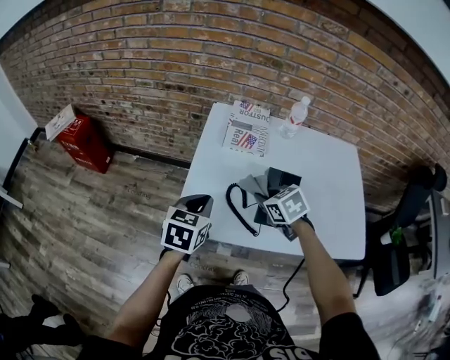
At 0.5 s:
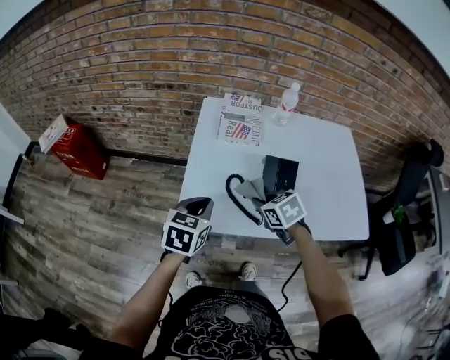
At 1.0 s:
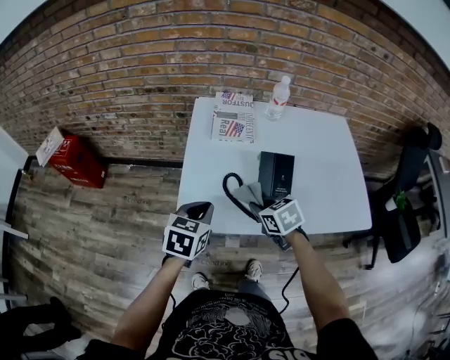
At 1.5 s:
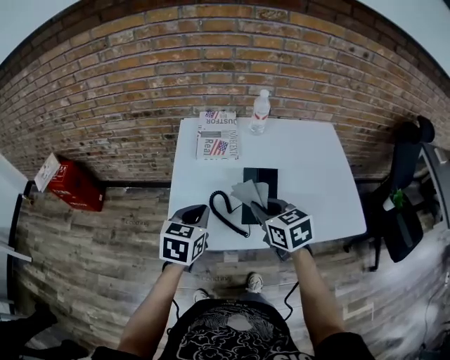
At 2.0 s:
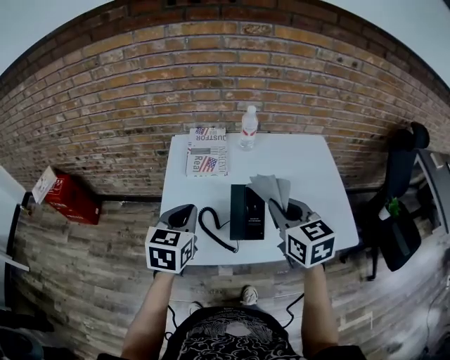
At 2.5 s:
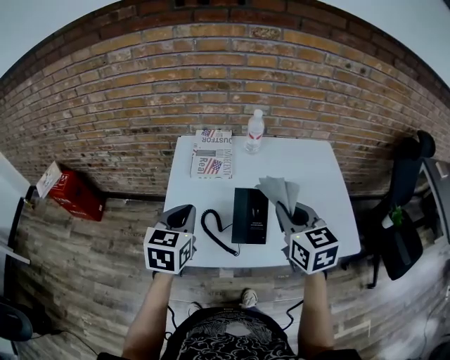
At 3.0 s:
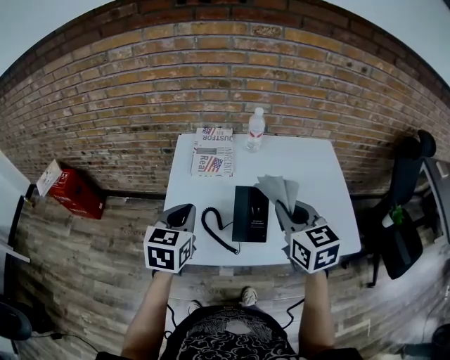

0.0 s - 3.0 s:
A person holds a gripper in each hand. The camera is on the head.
0.0 s - 1.5 s: The left gripper shifts by some 5 cm, while the right gripper shifts some 10 cm upward and backward, and changes its angle by about 30 degrees.
1.5 s - 3.0 s: The left gripper is displaced upward by some 5 cm. The right gripper goes some 15 cm upward and to the right.

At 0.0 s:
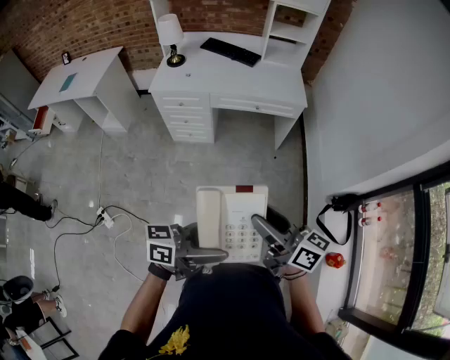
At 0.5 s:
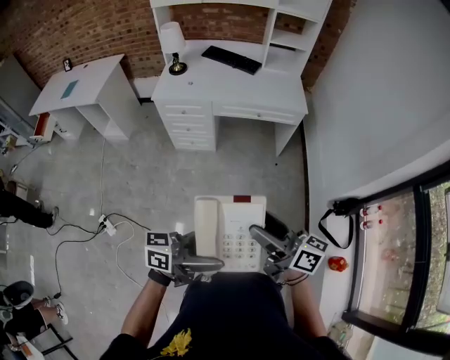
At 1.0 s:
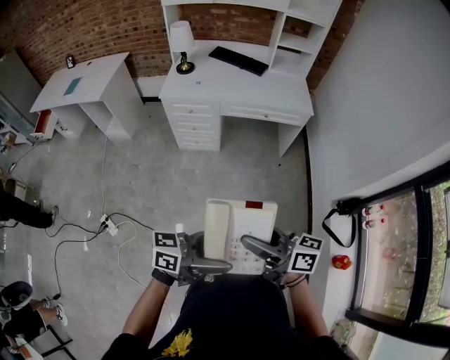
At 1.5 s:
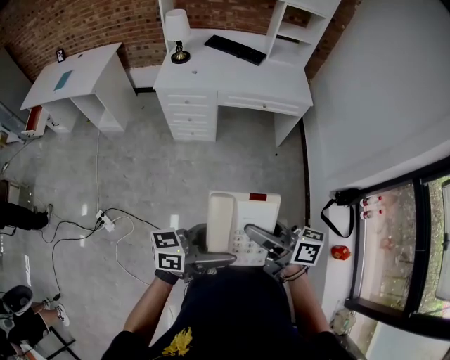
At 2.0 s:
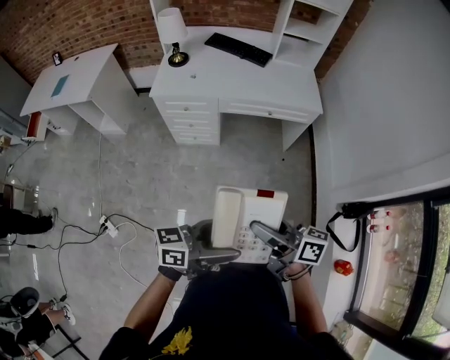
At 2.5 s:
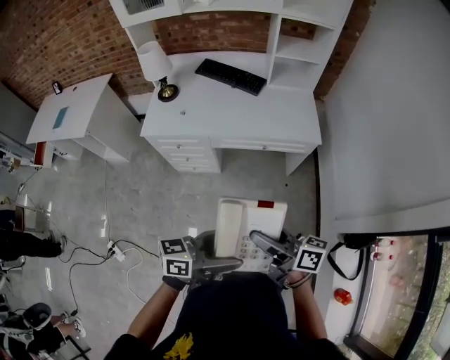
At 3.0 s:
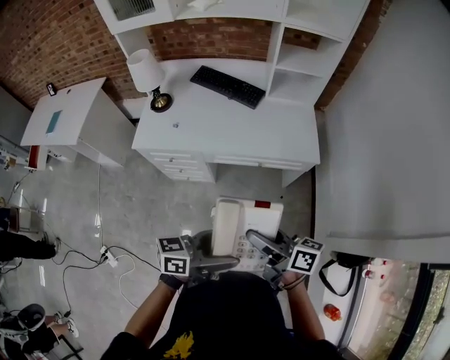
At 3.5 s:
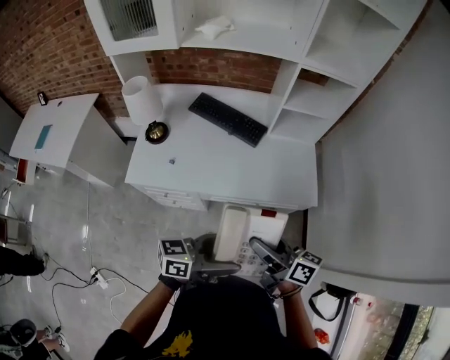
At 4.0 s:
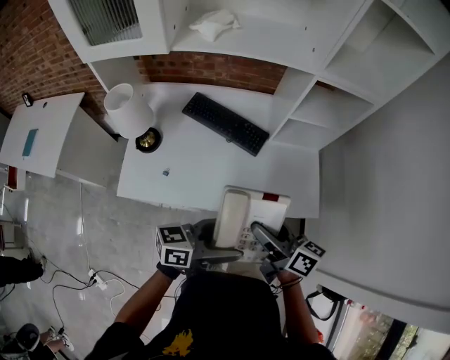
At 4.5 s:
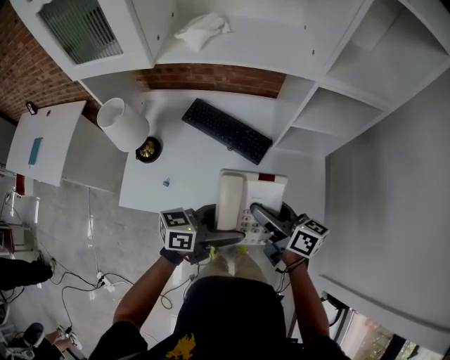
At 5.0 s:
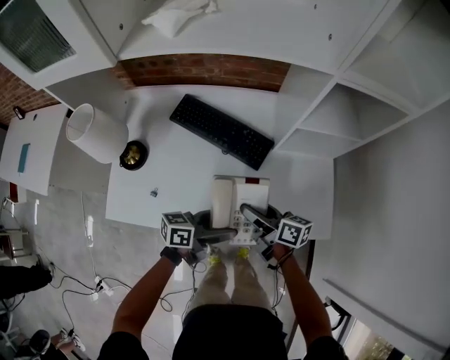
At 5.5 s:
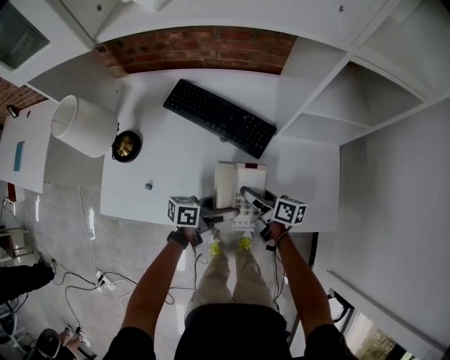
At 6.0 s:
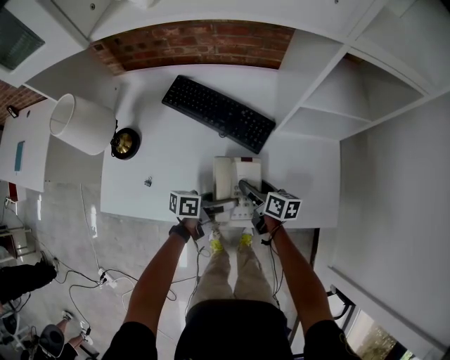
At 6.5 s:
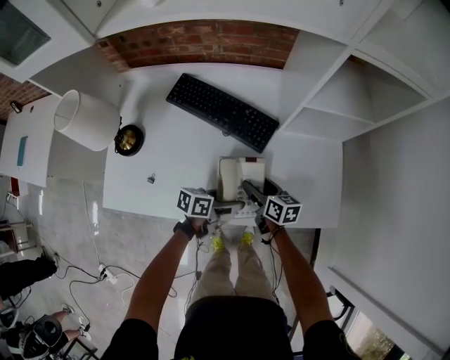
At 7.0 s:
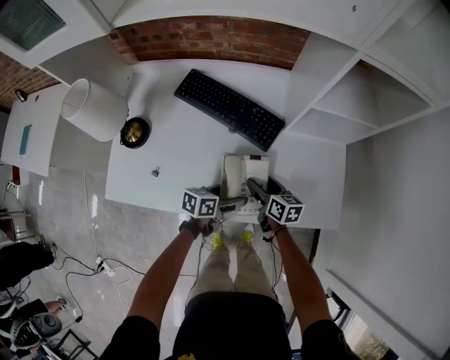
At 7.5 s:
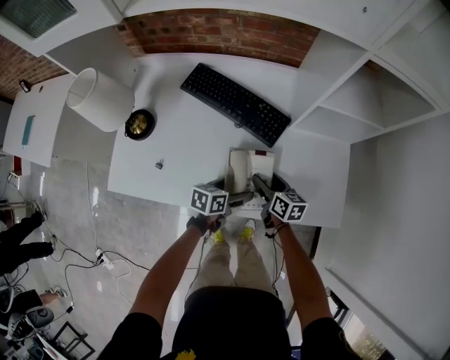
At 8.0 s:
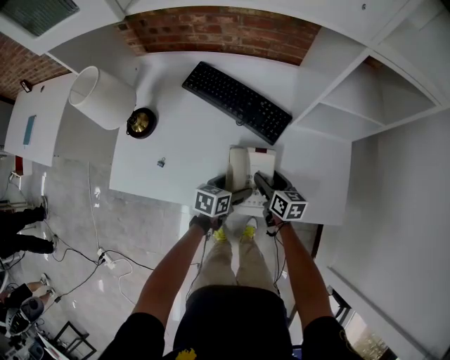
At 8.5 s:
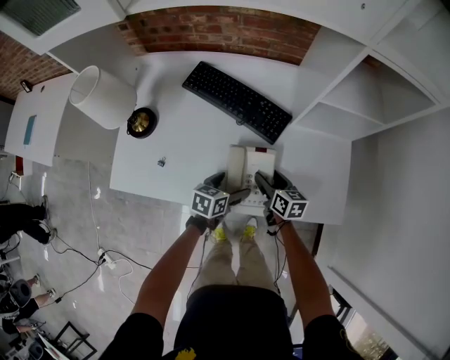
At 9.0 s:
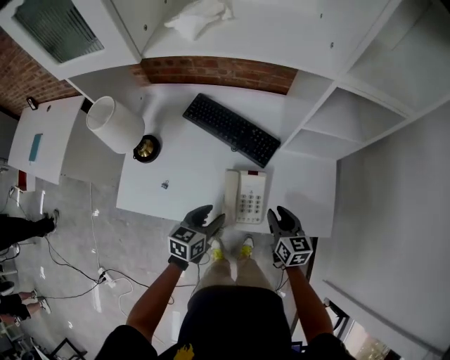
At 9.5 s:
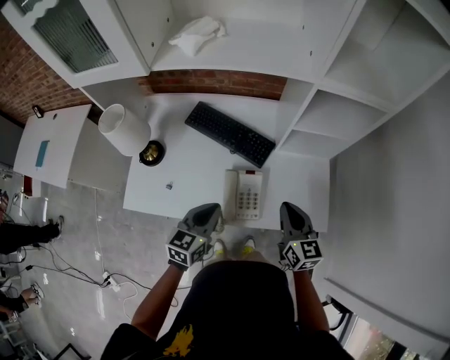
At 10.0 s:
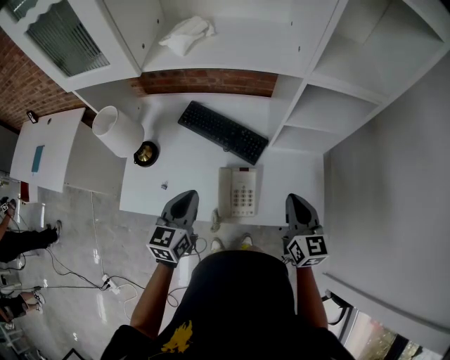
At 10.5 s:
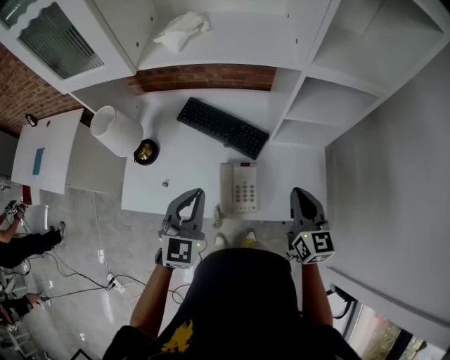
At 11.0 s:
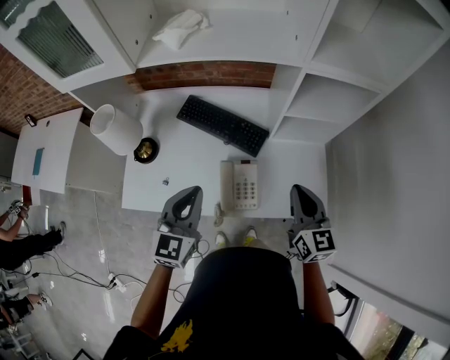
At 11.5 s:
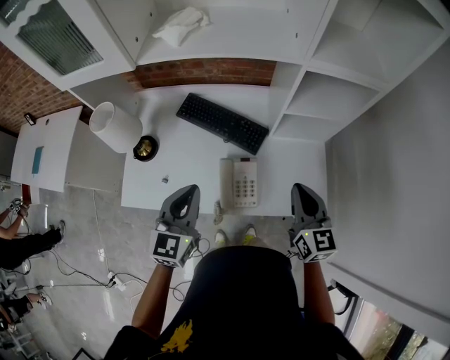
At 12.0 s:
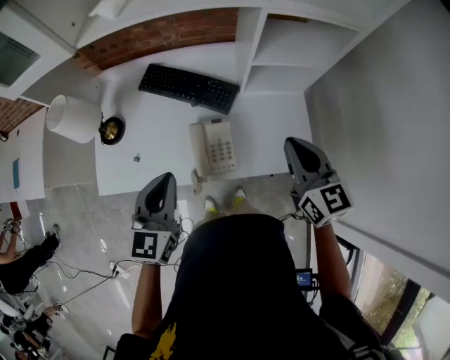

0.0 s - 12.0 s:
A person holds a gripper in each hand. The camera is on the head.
0.0 s - 2.0 s: The left gripper shifts by some 15 cm, while the right gripper ends up roughly 15 cm from where it was.
2.0 s - 4.0 s: Both grippers are carried forward, some 60 cm.
4.0 s - 6.0 s: The grippers both shift downward and forward by roughly 40 cm. The left gripper changes its angle by roughly 30 degrees. Meanwhile the right gripper swivels approximately 20 degrees.
6.0 s - 8.0 s: The left gripper changes its angle by roughly 40 degrees.
8.0 s - 10.0 s: The two grippers go about 30 cm upward. The right gripper turns by roughly 30 degrees, and closes; the left gripper turns by roughly 40 degrees, and closes up.
10.0 s - 12.0 s: The left gripper shifts by about 5 cm. Meanwhile the right gripper shifts roughly 5 cm upward.

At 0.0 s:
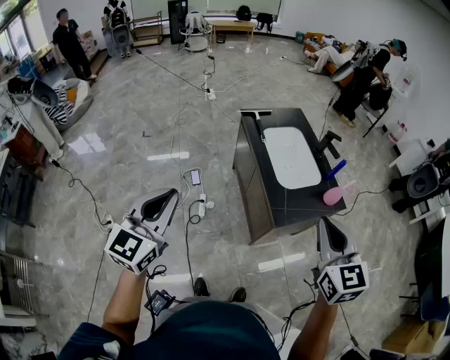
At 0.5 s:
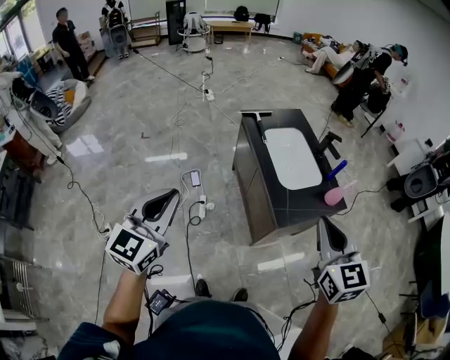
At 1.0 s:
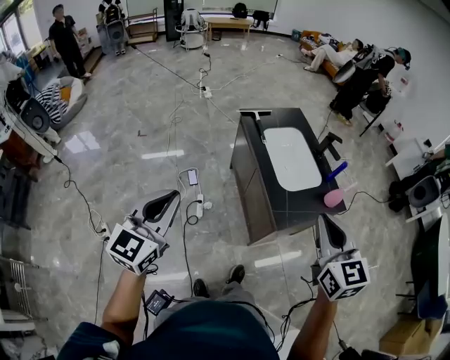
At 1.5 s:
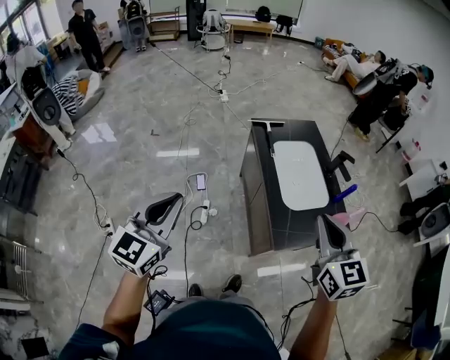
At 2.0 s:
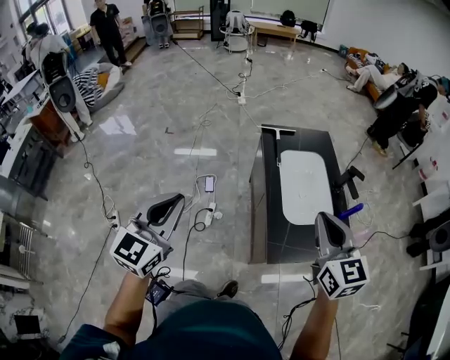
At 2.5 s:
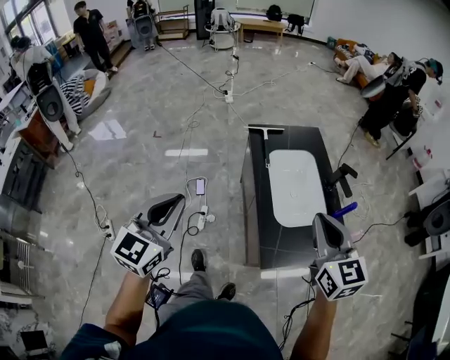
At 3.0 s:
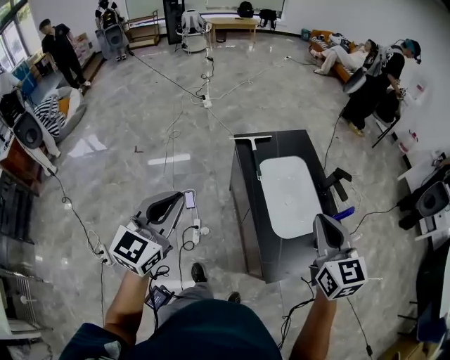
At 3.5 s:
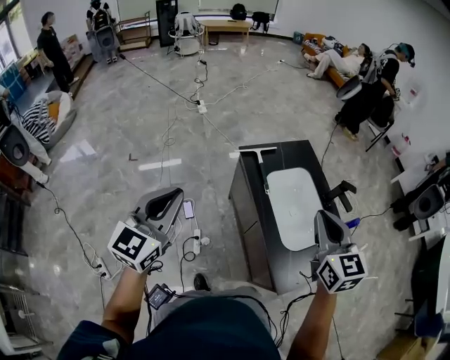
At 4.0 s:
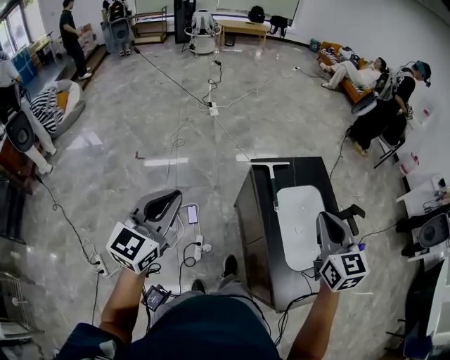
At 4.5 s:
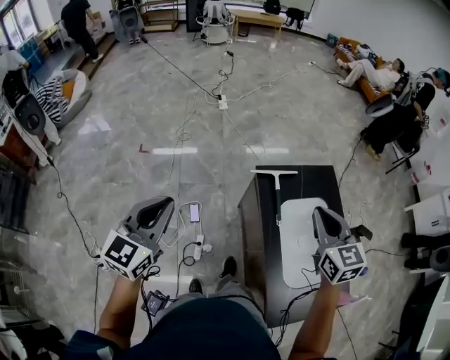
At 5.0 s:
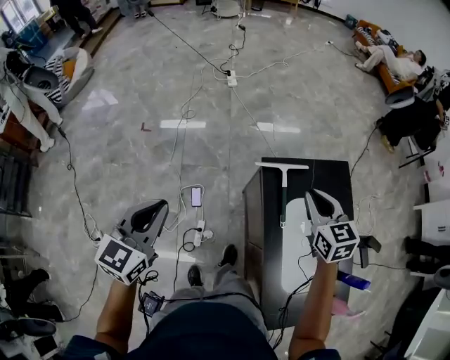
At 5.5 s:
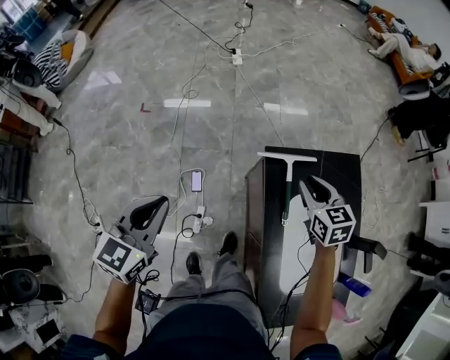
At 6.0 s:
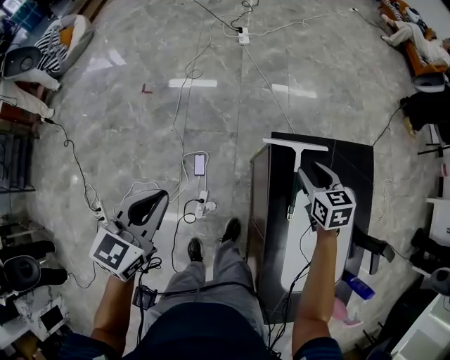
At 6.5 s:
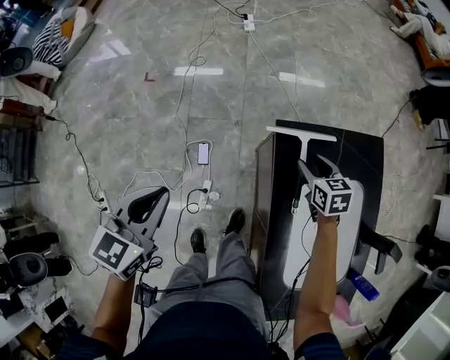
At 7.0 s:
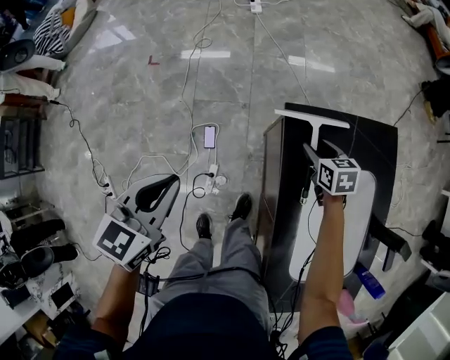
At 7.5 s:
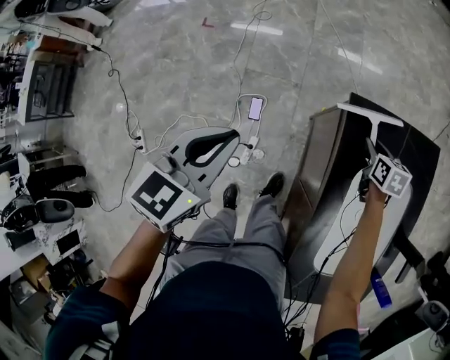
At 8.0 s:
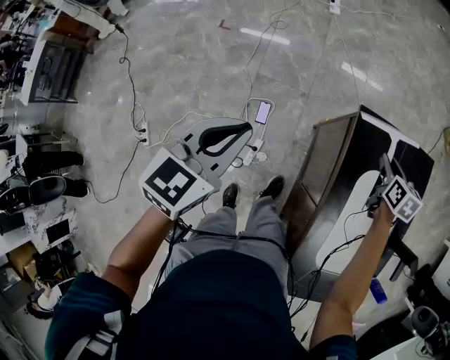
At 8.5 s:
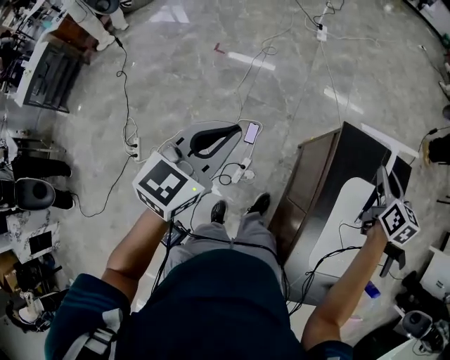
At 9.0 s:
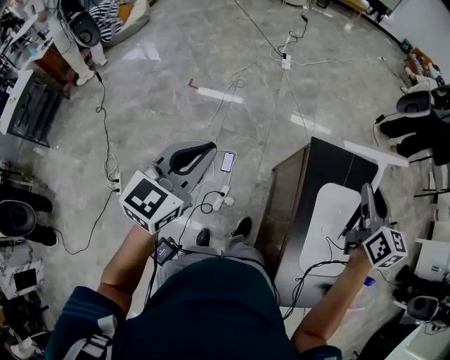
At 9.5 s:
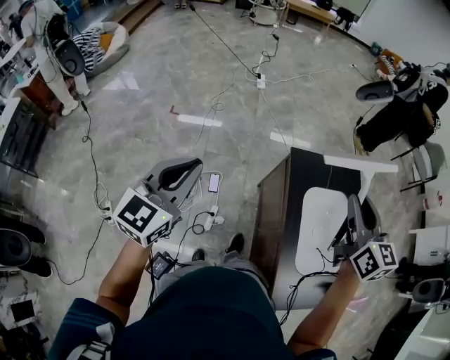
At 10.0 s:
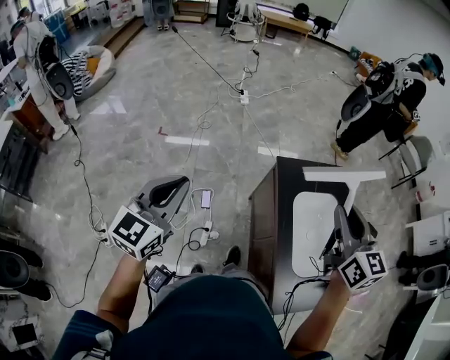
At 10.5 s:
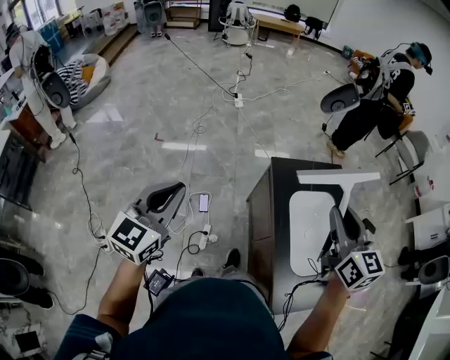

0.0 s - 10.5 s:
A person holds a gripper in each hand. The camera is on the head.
0.0 s - 2.0 s: The right gripper is displaced forward by about 20 cm; the left gripper shifts approximately 15 cm forward and to the right.
2.0 s - 4.0 s: Both grippers travel together forward and to the left, roughly 35 cm.
4.0 s - 6.5 s: The left gripper moves downward and forward, about 30 cm, and turns by some 30 degrees. The right gripper heads downward and forward, covering roughly 60 cm, swivels some 40 degrees, and opens.
6.5 s - 8.5 s: The left gripper goes roughly 15 cm upward, to the left and backward. The right gripper moves upward, approximately 20 cm, and closes.
8.5 s - 10.5 s: The right gripper travels upward and backward by approximately 35 cm, and changes its angle by approximately 20 degrees; the left gripper is displaced upward and backward by approximately 20 cm.

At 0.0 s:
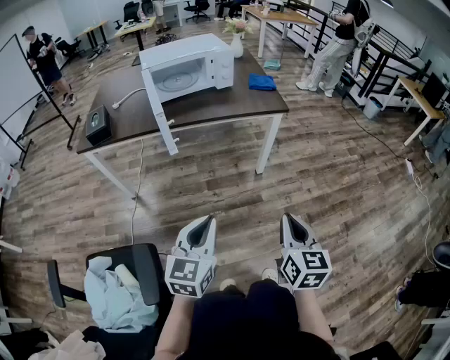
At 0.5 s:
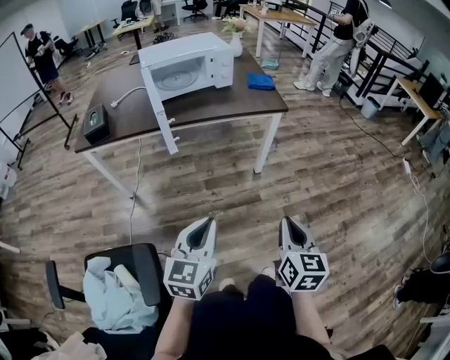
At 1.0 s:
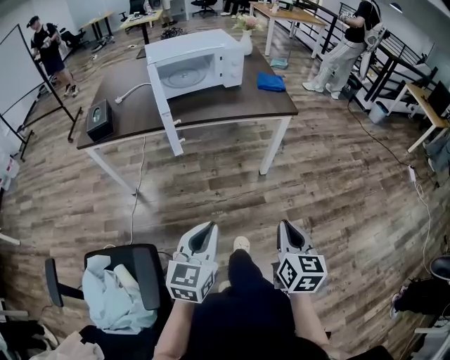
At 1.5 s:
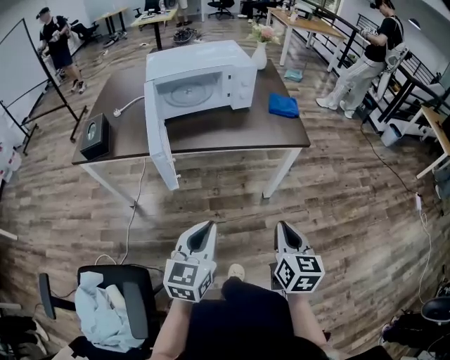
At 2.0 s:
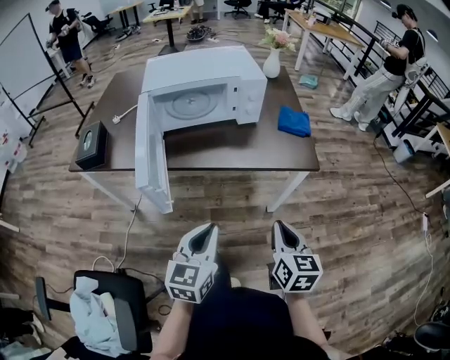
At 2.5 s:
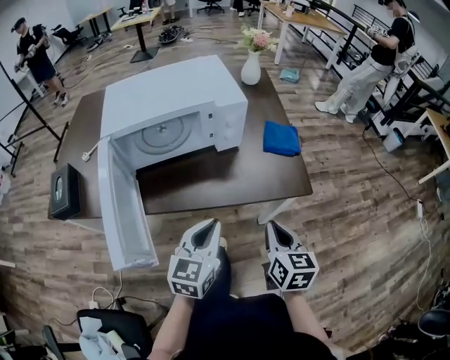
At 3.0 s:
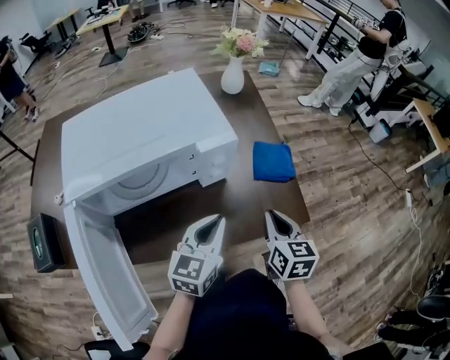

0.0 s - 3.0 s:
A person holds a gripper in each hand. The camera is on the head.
0.0 s - 1.5 s: The two grippers go about 20 cm forward.
1.5 s - 3.0 s: The pair of grippers is taken forward, roughly 50 cm.
